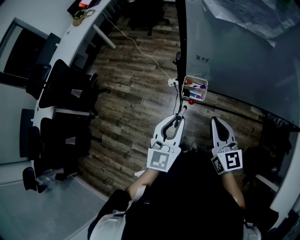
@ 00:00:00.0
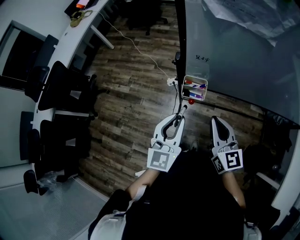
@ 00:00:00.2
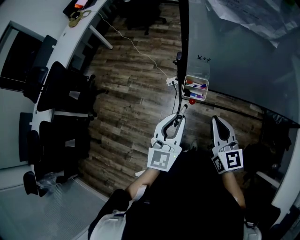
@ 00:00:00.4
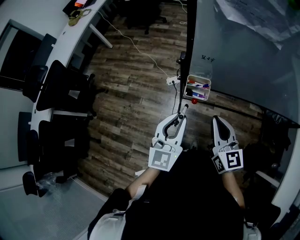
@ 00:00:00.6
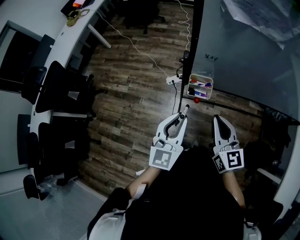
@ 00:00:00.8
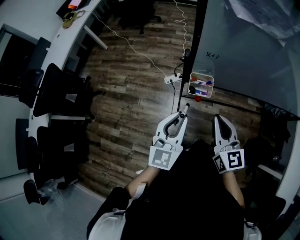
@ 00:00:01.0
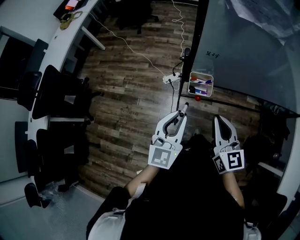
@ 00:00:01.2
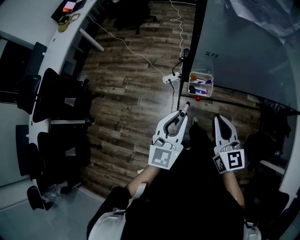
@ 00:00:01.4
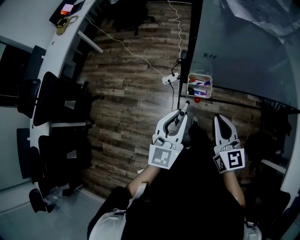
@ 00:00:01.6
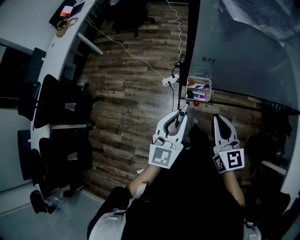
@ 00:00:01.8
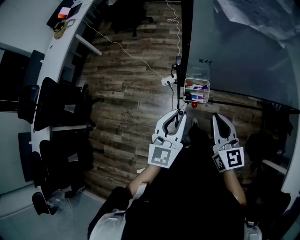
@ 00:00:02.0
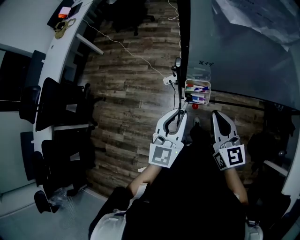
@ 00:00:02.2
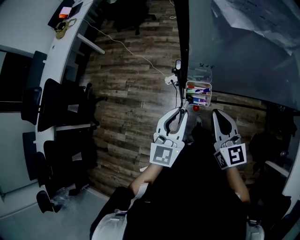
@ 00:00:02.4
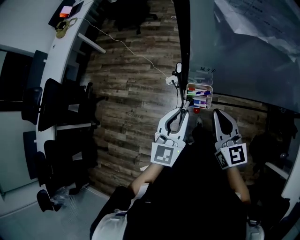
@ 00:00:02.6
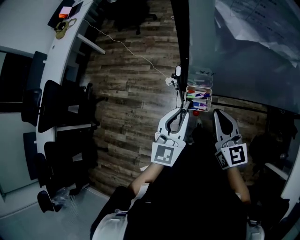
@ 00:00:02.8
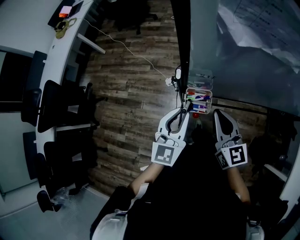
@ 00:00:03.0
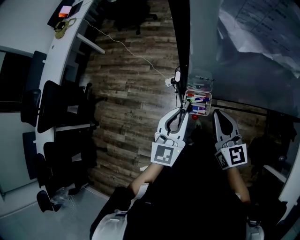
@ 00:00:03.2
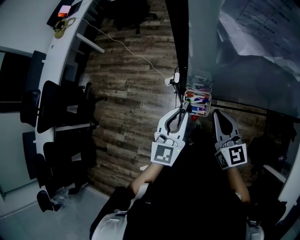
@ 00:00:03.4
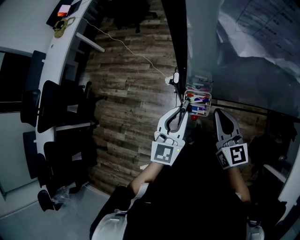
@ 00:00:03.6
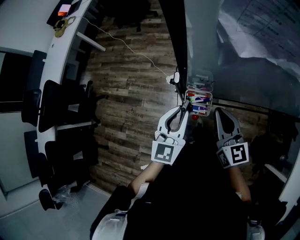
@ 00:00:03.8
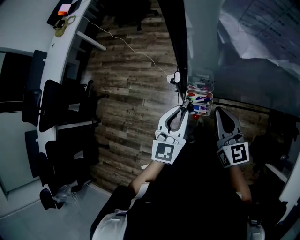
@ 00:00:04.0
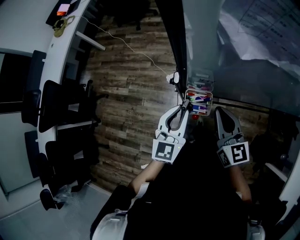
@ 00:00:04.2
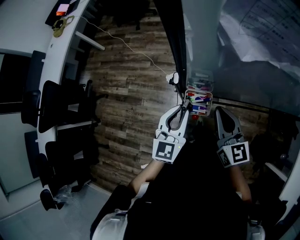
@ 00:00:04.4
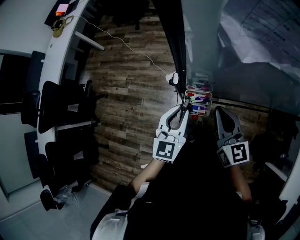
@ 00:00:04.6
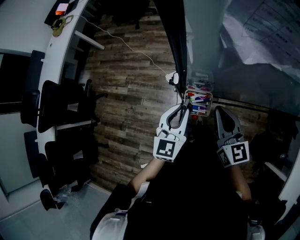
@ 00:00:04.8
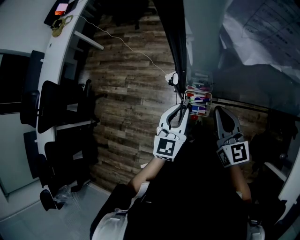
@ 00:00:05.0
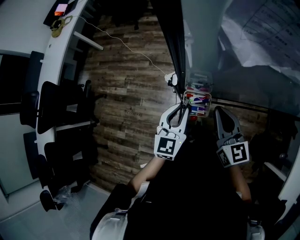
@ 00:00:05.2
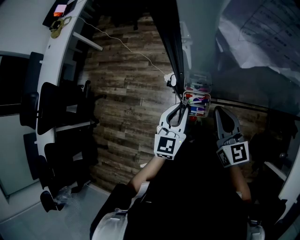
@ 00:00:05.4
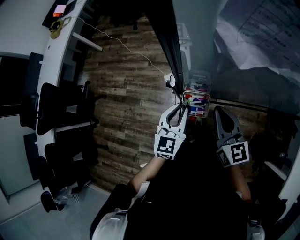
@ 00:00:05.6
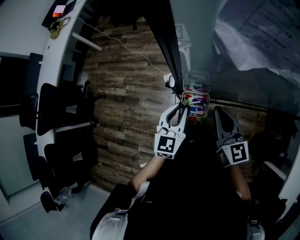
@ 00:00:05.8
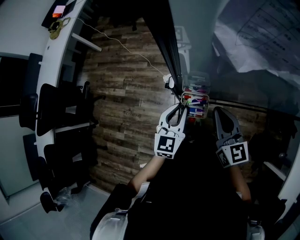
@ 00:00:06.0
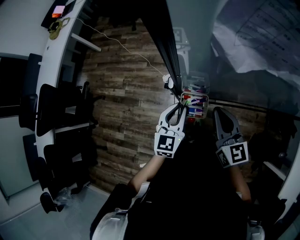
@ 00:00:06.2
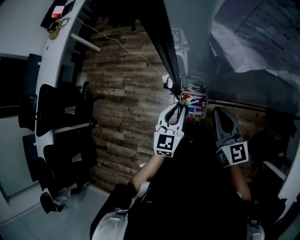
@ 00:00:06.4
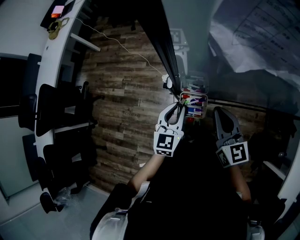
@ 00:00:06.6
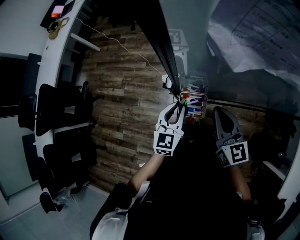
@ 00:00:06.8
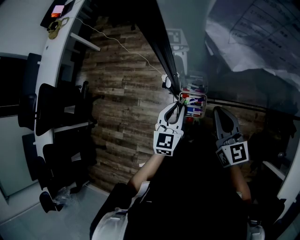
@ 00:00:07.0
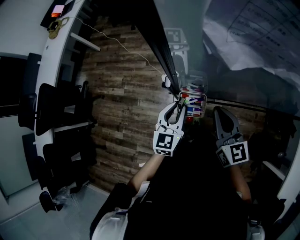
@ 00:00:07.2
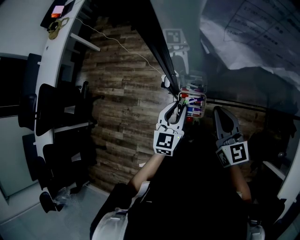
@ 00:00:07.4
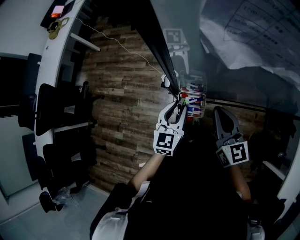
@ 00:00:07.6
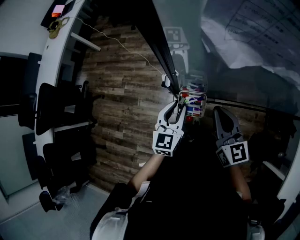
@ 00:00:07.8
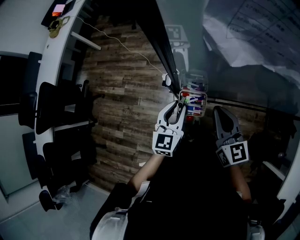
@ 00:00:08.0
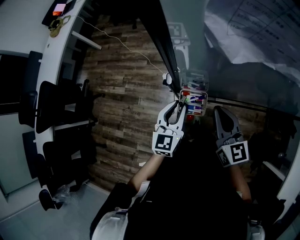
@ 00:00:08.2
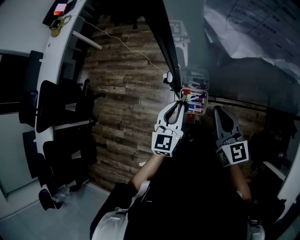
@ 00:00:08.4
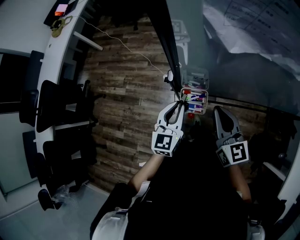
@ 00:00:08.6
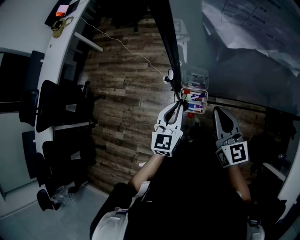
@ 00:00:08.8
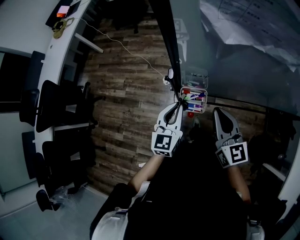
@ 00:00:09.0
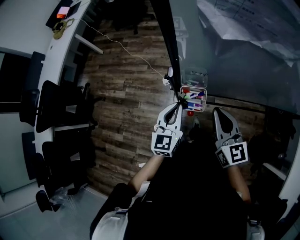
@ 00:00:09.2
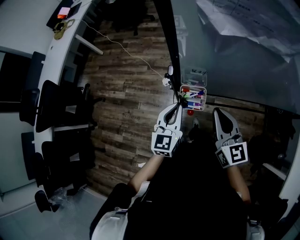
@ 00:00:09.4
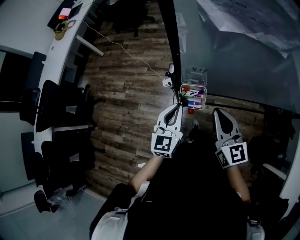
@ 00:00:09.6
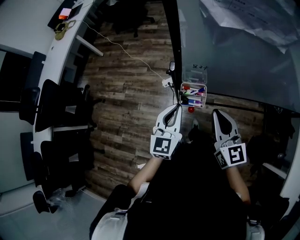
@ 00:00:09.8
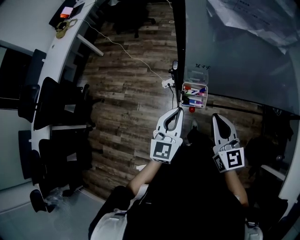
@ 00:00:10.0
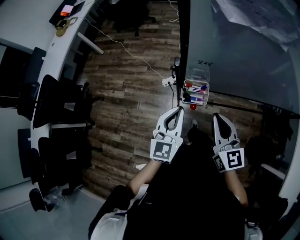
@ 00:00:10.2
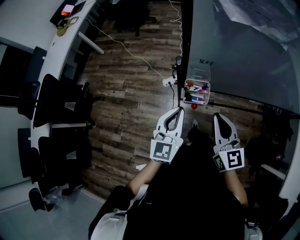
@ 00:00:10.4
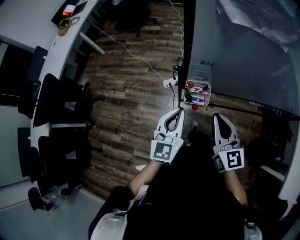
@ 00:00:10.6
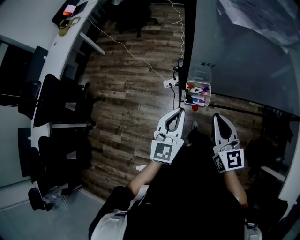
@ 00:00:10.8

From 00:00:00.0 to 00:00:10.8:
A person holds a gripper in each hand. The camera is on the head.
From 00:00:00.0 to 00:00:01.6: The grippers stay close to where they were, moving slightly.
From 00:00:01.6 to 00:00:03.0: Both grippers move forward, about 10 cm.
From 00:00:03.0 to 00:00:04.6: The grippers make only small movements.
From 00:00:04.6 to 00:00:06.2: The grippers move only a little.
From 00:00:06.2 to 00:00:07.8: The two grippers keep their place.
From 00:00:07.8 to 00:00:09.2: The left gripper closes up.
From 00:00:09.2 to 00:00:10.8: The right gripper travels backward by about 5 cm; the left gripper travels backward and upward by roughly 10 cm.

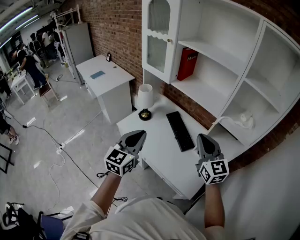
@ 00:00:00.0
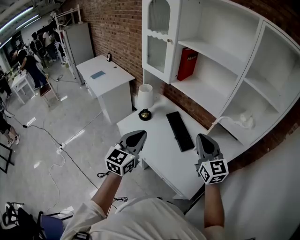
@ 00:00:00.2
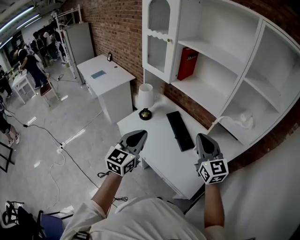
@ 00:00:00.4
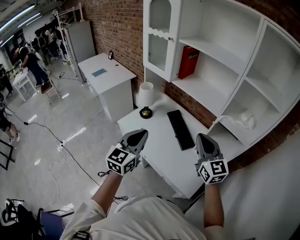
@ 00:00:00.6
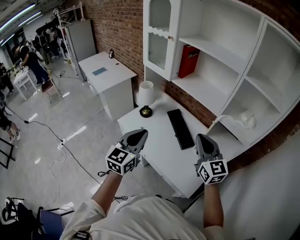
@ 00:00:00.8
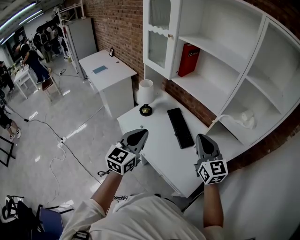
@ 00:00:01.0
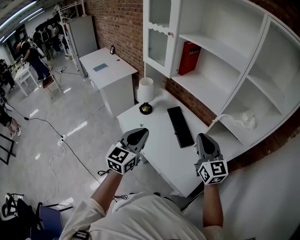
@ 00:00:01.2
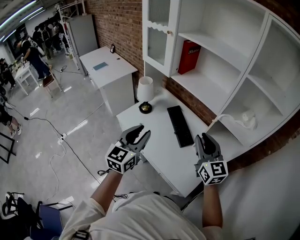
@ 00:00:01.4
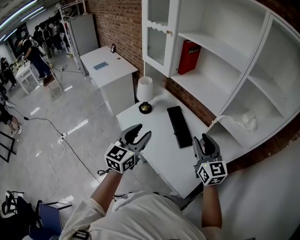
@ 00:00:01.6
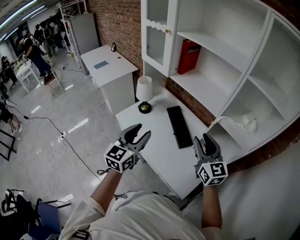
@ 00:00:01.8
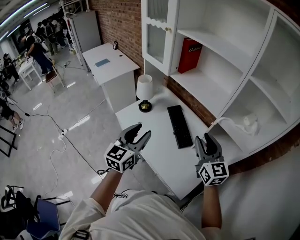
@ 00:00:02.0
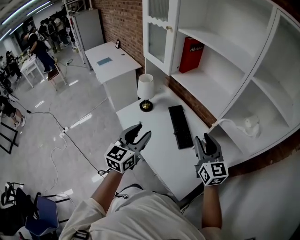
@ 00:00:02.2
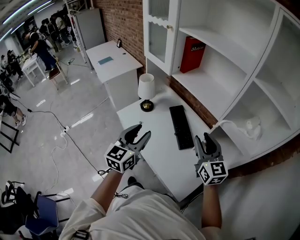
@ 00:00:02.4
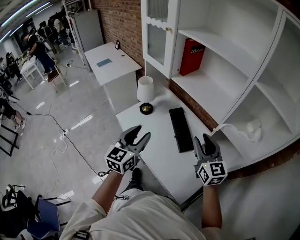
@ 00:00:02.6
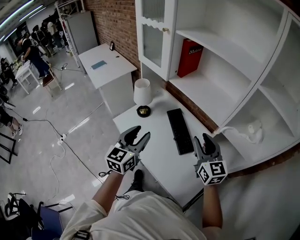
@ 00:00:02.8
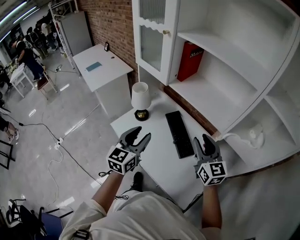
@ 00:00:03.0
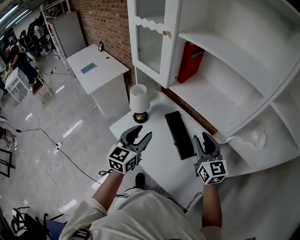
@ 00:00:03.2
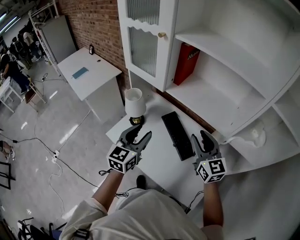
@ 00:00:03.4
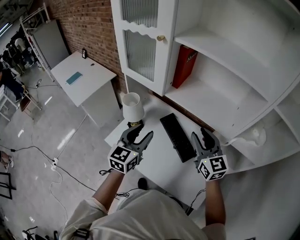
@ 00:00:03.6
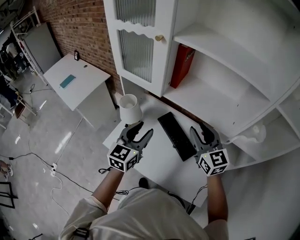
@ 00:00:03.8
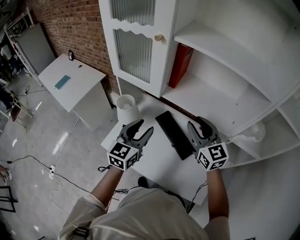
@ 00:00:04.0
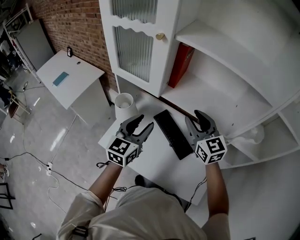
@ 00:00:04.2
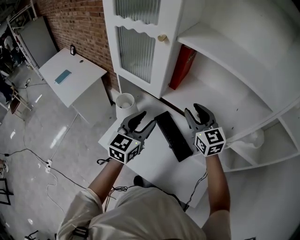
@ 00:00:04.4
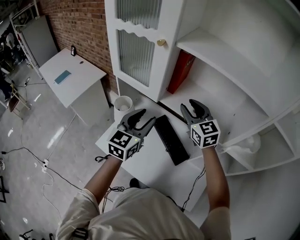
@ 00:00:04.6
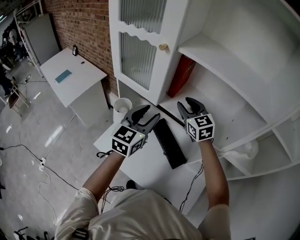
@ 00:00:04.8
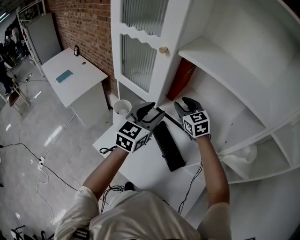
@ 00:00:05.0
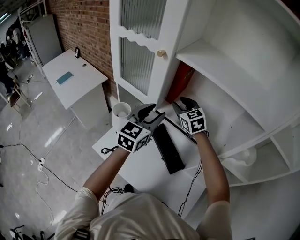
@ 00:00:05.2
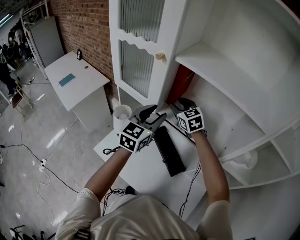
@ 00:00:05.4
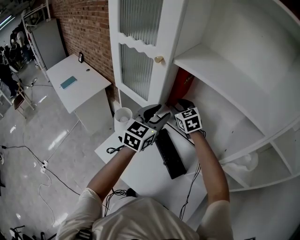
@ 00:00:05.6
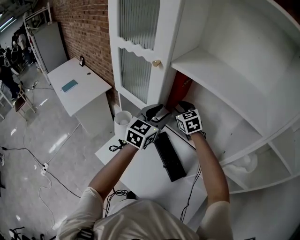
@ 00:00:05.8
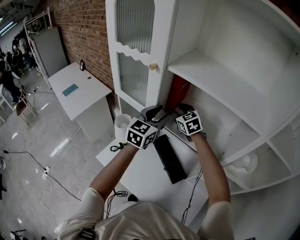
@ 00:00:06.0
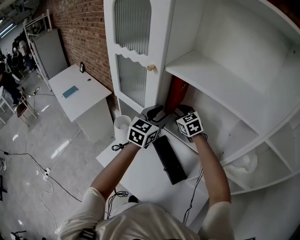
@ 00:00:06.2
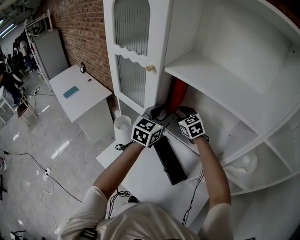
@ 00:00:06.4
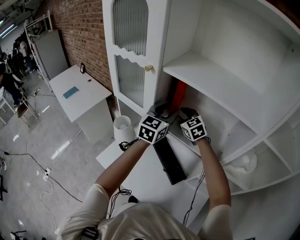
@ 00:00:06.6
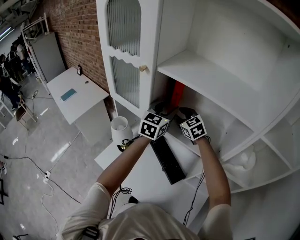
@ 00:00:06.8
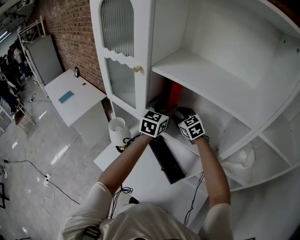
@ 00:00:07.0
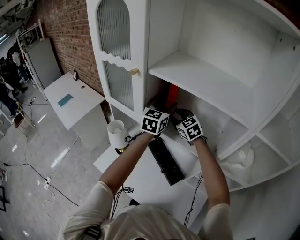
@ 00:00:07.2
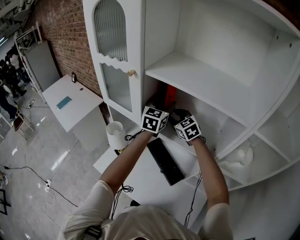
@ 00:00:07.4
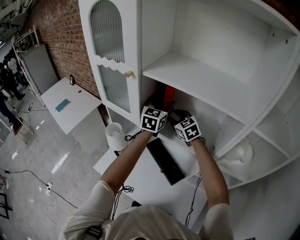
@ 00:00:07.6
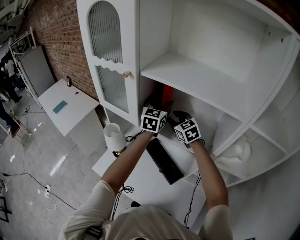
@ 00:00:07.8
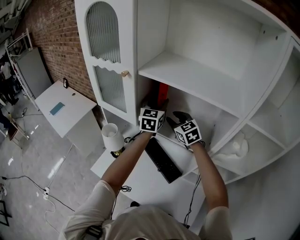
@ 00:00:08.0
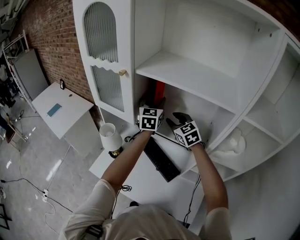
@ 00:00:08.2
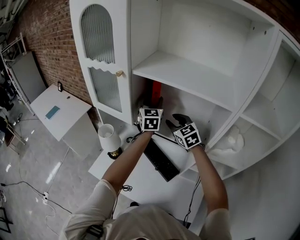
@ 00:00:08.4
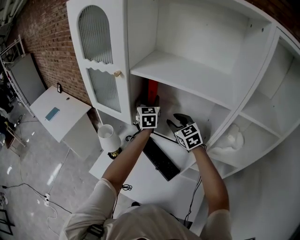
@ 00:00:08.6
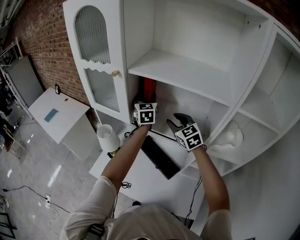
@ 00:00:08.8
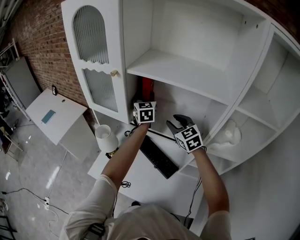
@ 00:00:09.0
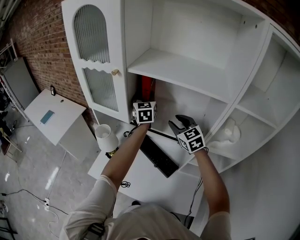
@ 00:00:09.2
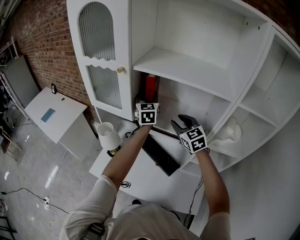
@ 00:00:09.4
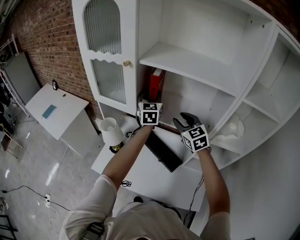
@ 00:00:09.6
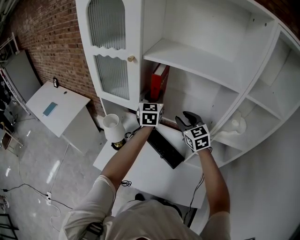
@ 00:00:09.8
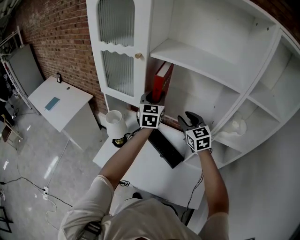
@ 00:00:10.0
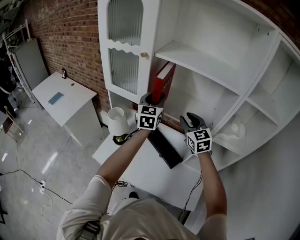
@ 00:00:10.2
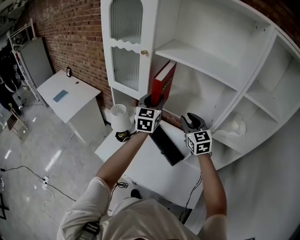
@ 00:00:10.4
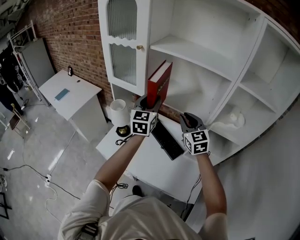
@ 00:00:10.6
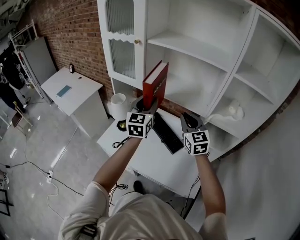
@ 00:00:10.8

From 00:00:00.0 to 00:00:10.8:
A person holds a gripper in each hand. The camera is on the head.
From 00:00:00.0 to 00:00:01.6: The right gripper ends up approximately 5 cm from where it was, and opens up; the left gripper opens its fingers.
From 00:00:01.6 to 00:00:03.0: Both grippers move forward, about 15 cm.
From 00:00:03.0 to 00:00:04.6: The right gripper goes about 25 cm forward and to the left, while the left gripper is displaced forward by some 20 cm.
From 00:00:04.6 to 00:00:06.2: The right gripper is displaced forward by roughly 10 cm; the left gripper is displaced forward and to the right by some 15 cm.
From 00:00:06.2 to 00:00:07.8: The right gripper goes some 5 cm to the right. The left gripper is displaced to the right and forward by some 10 cm.
From 00:00:07.8 to 00:00:09.2: The right gripper heads backward, covering some 10 cm.
From 00:00:09.2 to 00:00:10.8: The left gripper goes some 25 cm backward. The right gripper goes roughly 15 cm backward, and closes.

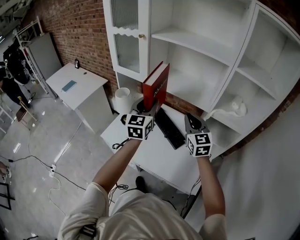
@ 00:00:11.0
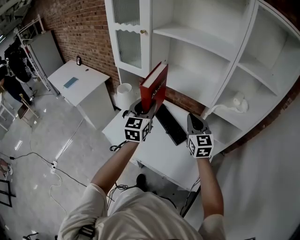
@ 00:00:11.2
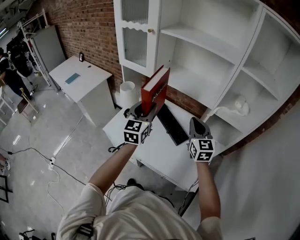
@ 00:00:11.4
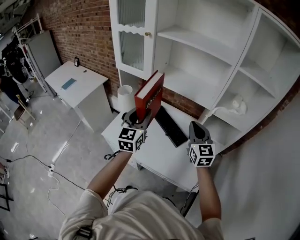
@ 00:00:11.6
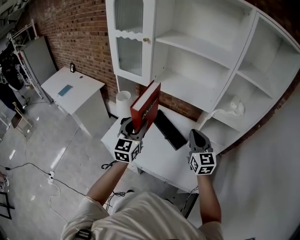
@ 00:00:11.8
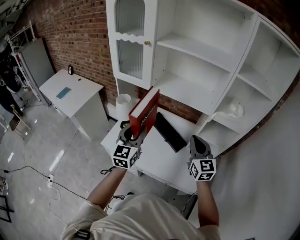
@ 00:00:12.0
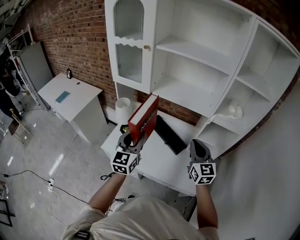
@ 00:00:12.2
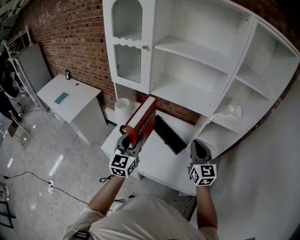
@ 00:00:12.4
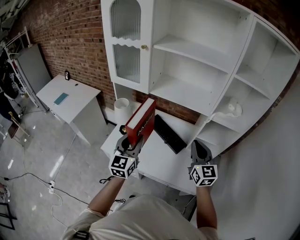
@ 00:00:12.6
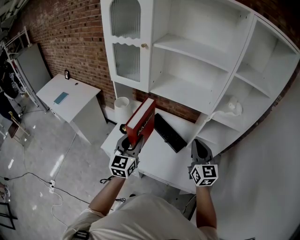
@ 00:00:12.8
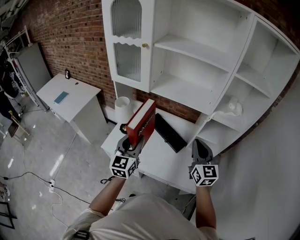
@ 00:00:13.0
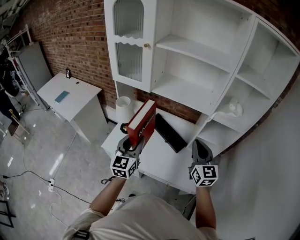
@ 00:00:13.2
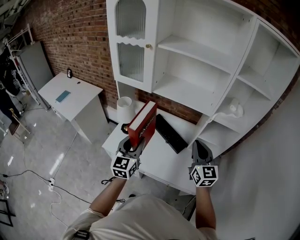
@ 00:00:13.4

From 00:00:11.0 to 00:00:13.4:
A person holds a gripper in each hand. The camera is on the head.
From 00:00:11.0 to 00:00:12.2: The left gripper moves backward and to the left, about 15 cm. Meanwhile the right gripper goes some 10 cm backward.
From 00:00:12.2 to 00:00:13.4: The grippers move only a little.
